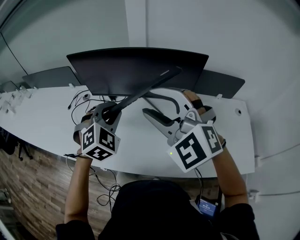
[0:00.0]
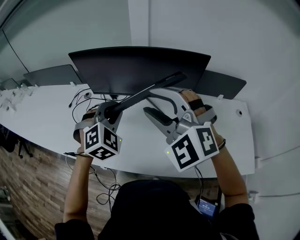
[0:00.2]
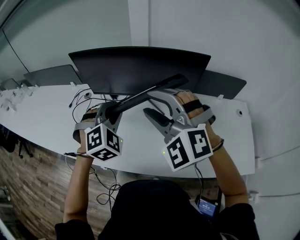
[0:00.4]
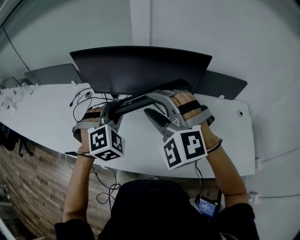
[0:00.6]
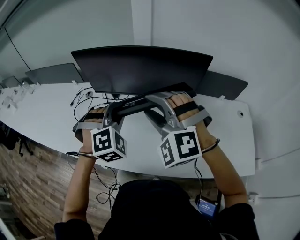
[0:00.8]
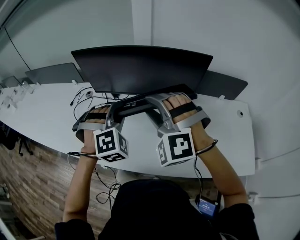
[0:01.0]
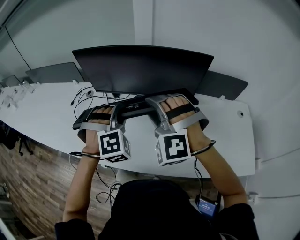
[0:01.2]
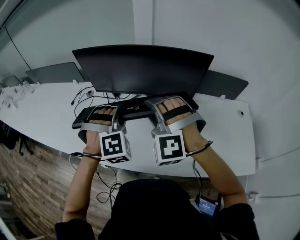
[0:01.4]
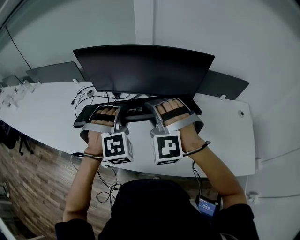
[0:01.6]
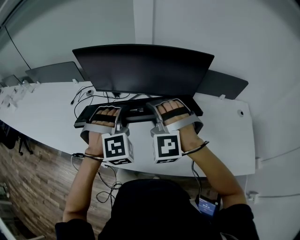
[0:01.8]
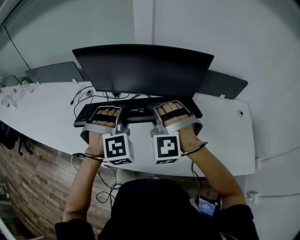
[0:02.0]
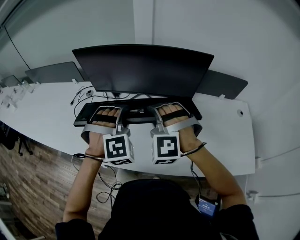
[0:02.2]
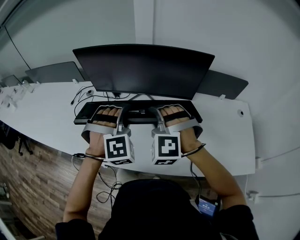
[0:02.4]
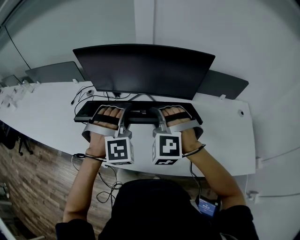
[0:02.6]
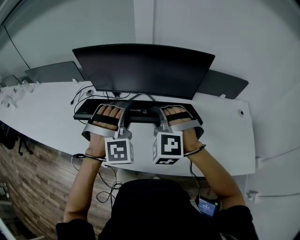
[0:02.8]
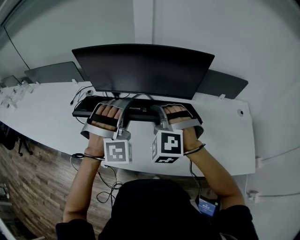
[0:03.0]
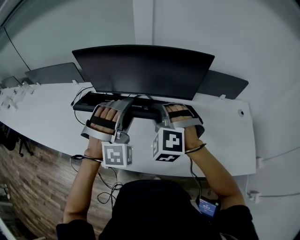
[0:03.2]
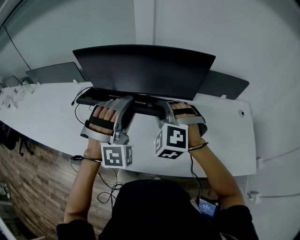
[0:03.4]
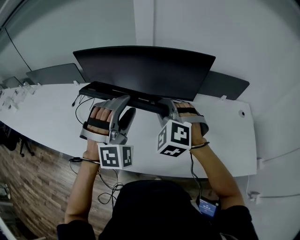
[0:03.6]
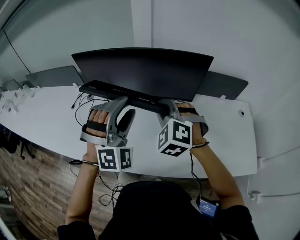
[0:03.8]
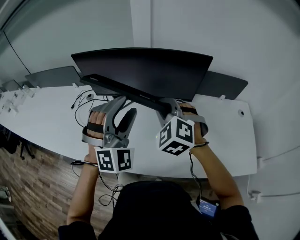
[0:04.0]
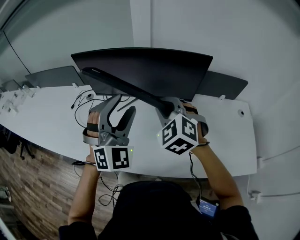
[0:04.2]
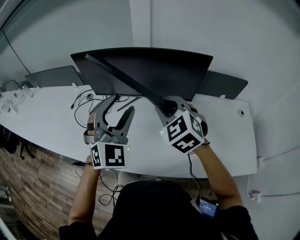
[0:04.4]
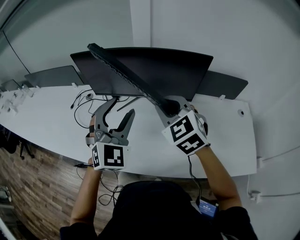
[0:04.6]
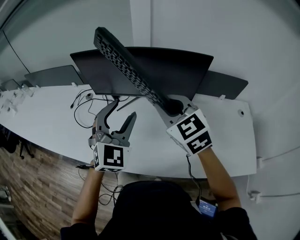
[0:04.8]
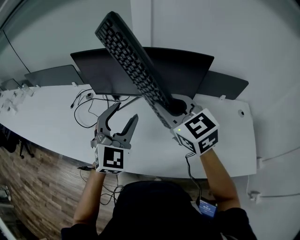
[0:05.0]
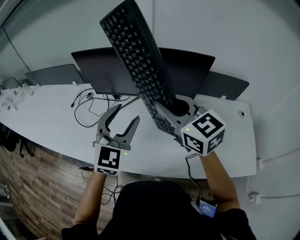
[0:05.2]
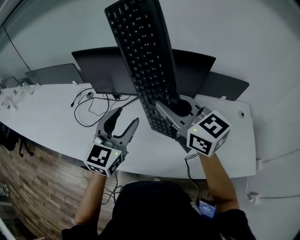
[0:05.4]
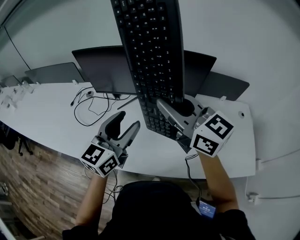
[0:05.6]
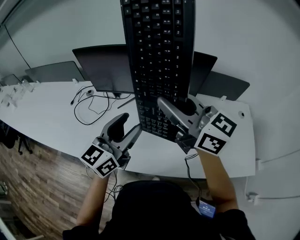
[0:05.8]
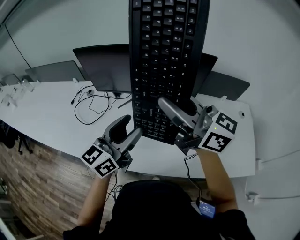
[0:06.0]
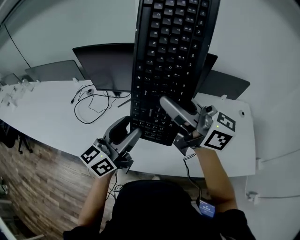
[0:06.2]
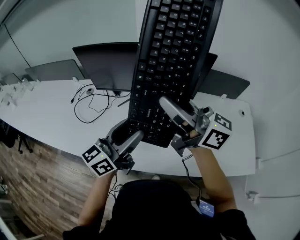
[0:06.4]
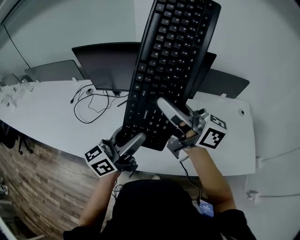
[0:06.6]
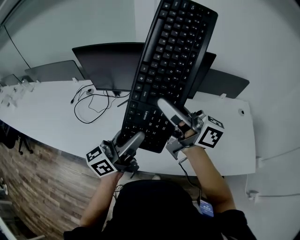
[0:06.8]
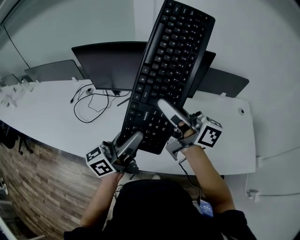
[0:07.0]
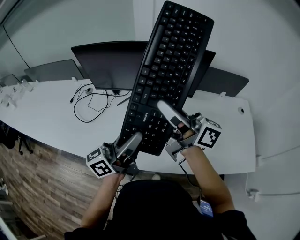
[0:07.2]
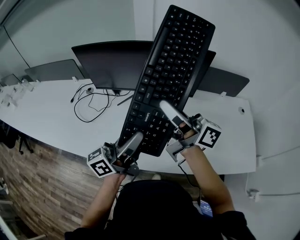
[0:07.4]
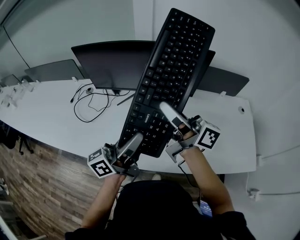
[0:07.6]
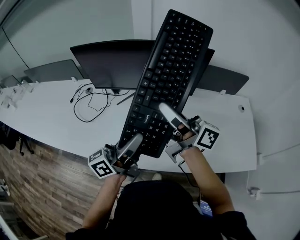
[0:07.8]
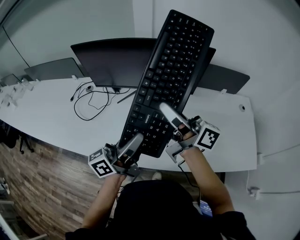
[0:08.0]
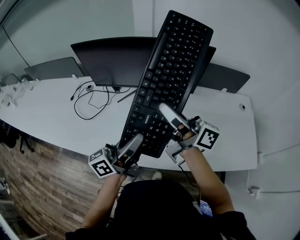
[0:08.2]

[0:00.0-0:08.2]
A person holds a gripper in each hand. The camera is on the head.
0:00.0 to 0:01.6: The right gripper goes some 10 cm downward, and swivels approximately 30 degrees. Meanwhile the left gripper rotates approximately 30 degrees.
0:01.6 to 0:03.2: The right gripper closes its fingers; the left gripper opens.
0:03.2 to 0:05.0: The left gripper twists about 50 degrees counterclockwise, seen from behind; the right gripper moves upward, about 10 cm, and rolls clockwise, seen from behind, by approximately 50 degrees.
0:05.0 to 0:06.6: The right gripper is displaced upward by some 5 cm, and angles its fingers upward, by roughly 40 degrees. Meanwhile the left gripper shifts some 5 cm backward, and rolls counterclockwise, seen from behind, by approximately 70 degrees.
0:06.6 to 0:08.2: The left gripper closes up.

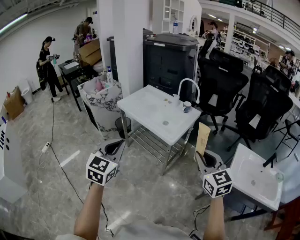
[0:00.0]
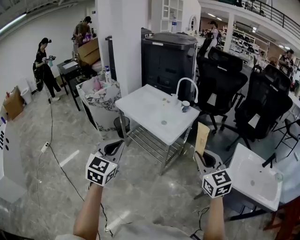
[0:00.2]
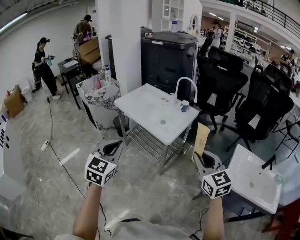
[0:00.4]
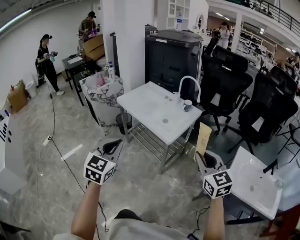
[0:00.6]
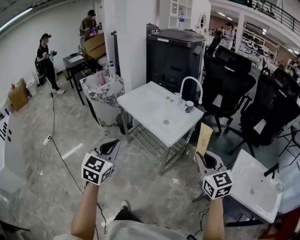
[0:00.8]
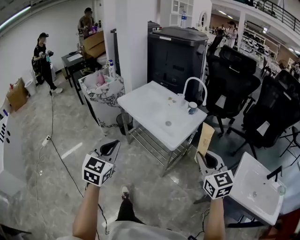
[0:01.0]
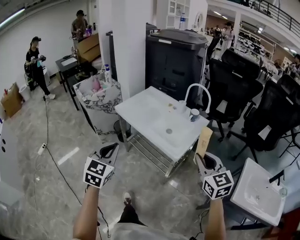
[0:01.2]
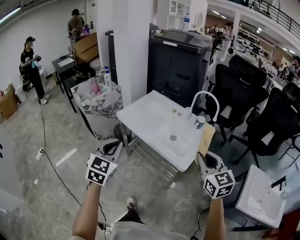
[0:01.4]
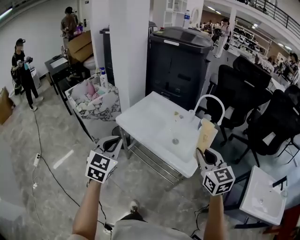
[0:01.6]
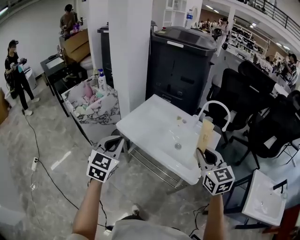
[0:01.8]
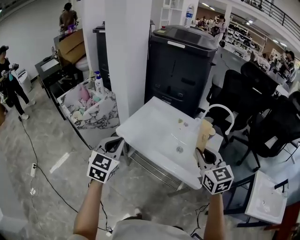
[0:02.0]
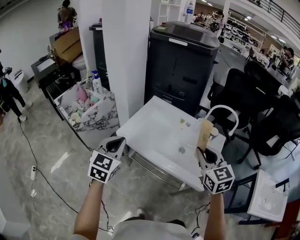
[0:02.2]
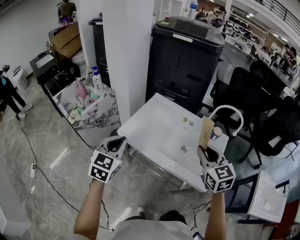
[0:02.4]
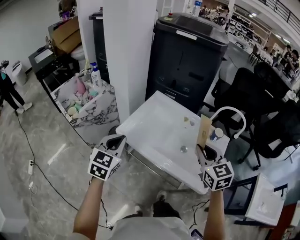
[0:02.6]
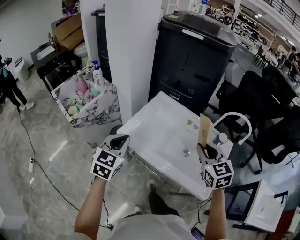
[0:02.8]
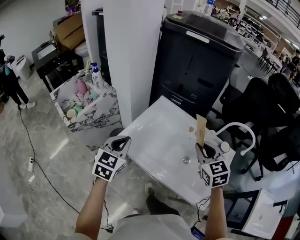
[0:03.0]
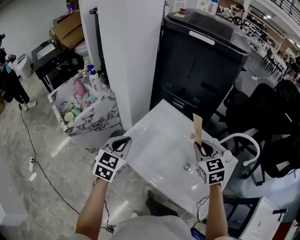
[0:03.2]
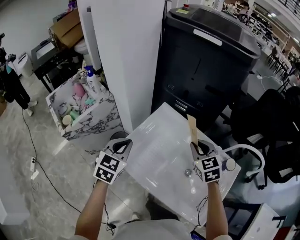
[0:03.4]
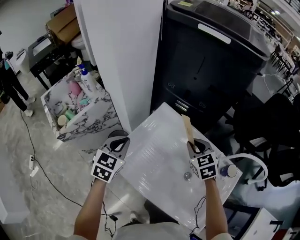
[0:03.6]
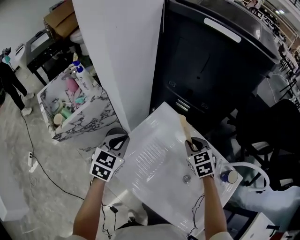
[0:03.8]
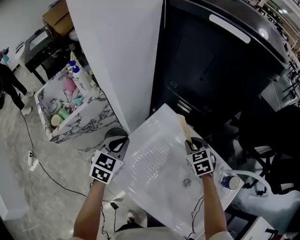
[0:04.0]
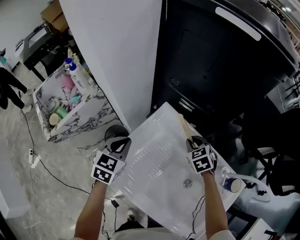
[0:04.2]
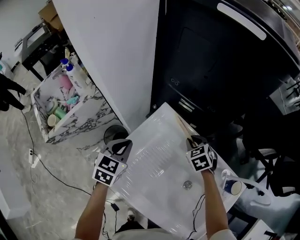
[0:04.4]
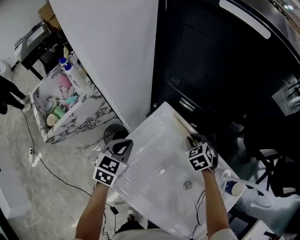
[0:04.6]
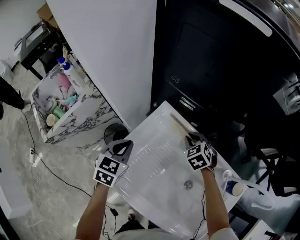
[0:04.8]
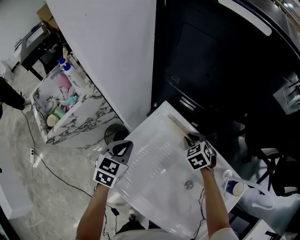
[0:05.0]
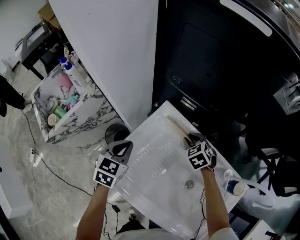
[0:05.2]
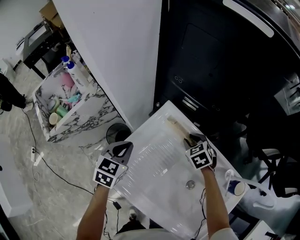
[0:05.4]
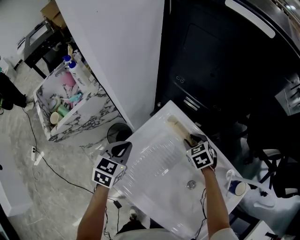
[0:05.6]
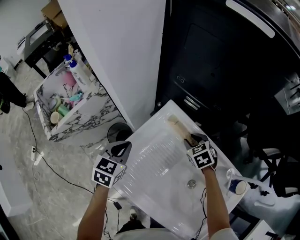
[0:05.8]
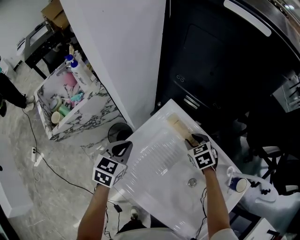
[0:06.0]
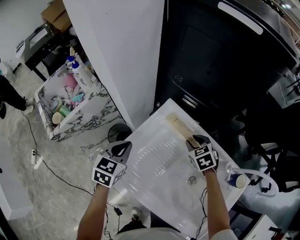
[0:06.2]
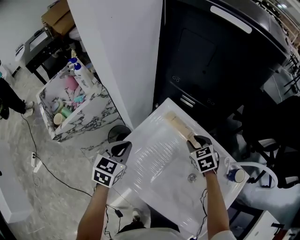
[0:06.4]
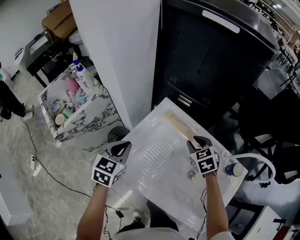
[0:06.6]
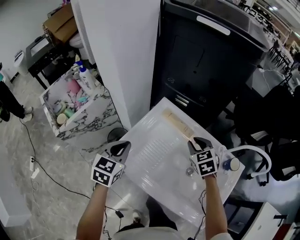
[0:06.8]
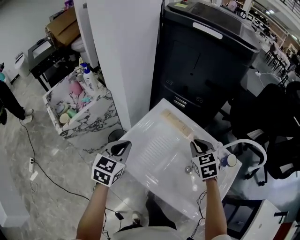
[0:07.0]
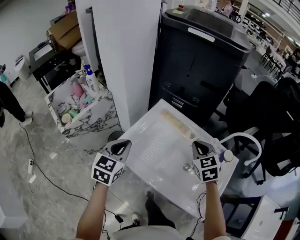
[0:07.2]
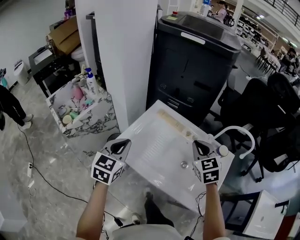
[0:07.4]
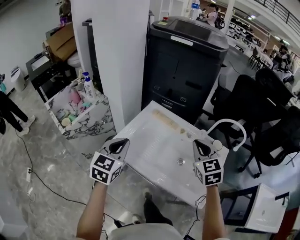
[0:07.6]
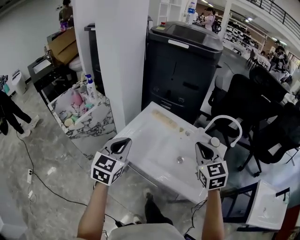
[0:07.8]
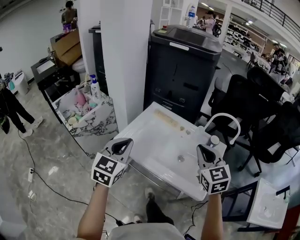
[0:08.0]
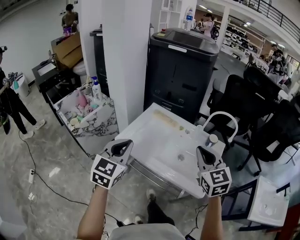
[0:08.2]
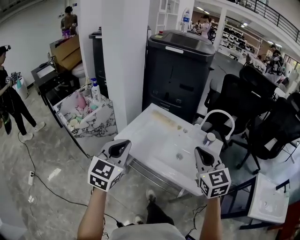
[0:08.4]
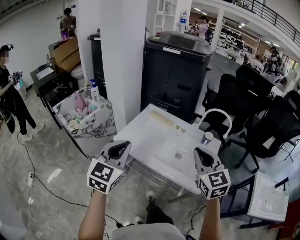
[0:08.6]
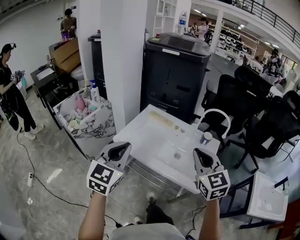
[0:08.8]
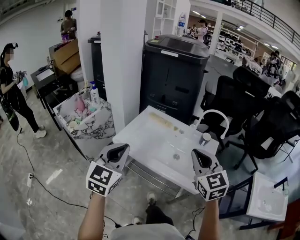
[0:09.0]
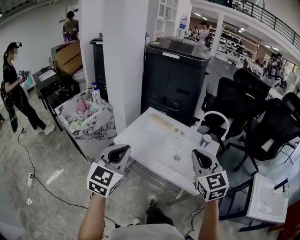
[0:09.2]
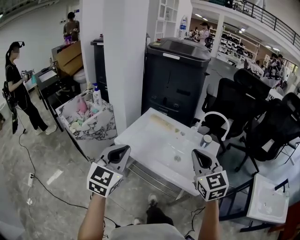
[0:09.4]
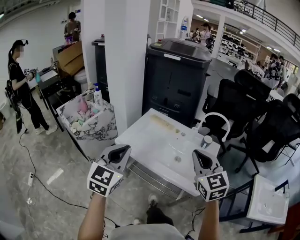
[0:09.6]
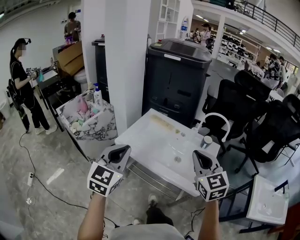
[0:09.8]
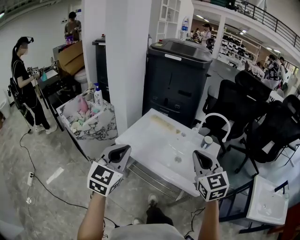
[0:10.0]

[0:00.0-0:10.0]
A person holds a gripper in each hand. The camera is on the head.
0:00.0 to 0:01.4: The grippers both shift forward by roughly 25 cm.
0:01.4 to 0:02.8: The right gripper is displaced forward and to the left by some 35 cm. Meanwhile the left gripper moves forward, roughly 30 cm.
0:02.8 to 0:04.2: The grippers both shift forward and downward by roughly 35 cm. The right gripper rotates roughly 30 degrees.
0:04.2 to 0:05.8: The grippers make only small movements.
0:05.8 to 0:07.2: The left gripper shifts roughly 20 cm backward and upward. The right gripper shifts roughly 30 cm upward and backward, swivels some 30 degrees, and closes its fingers.
0:07.2 to 0:08.6: Both grippers travel together backward and upward, roughly 30 cm. The right gripper swivels some 20 degrees.
0:08.6 to 0:10.0: There are only small adjustments of the grippers.

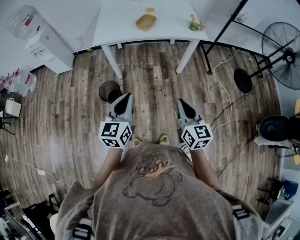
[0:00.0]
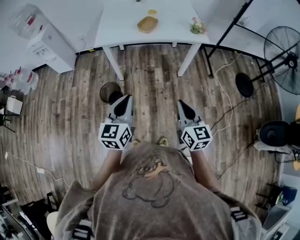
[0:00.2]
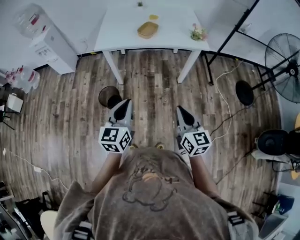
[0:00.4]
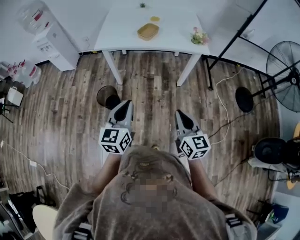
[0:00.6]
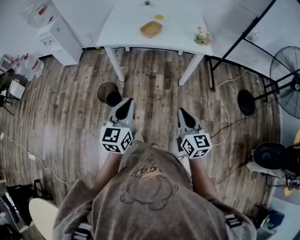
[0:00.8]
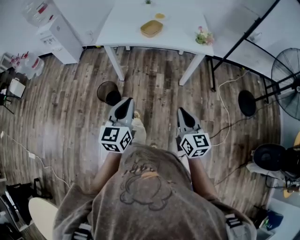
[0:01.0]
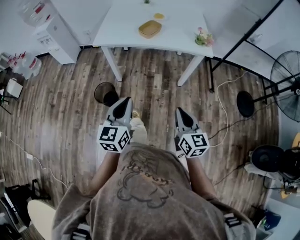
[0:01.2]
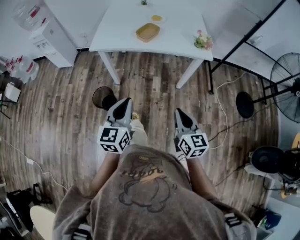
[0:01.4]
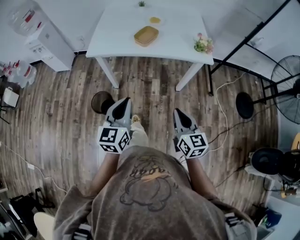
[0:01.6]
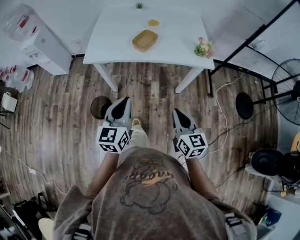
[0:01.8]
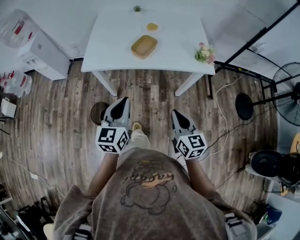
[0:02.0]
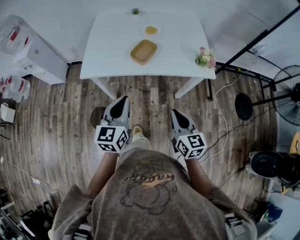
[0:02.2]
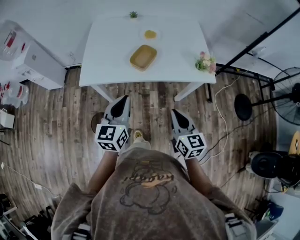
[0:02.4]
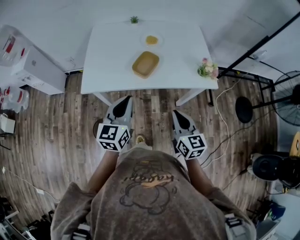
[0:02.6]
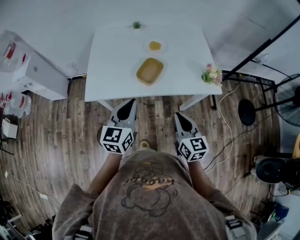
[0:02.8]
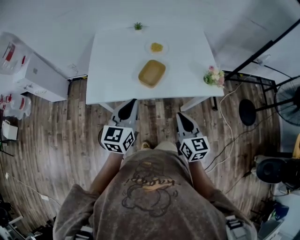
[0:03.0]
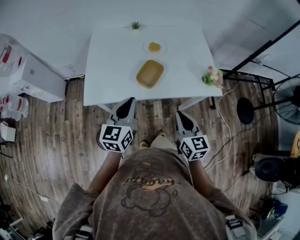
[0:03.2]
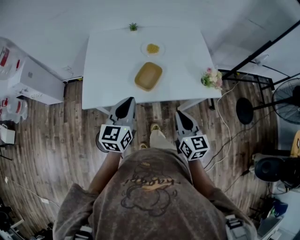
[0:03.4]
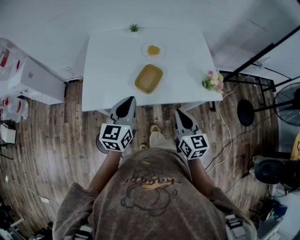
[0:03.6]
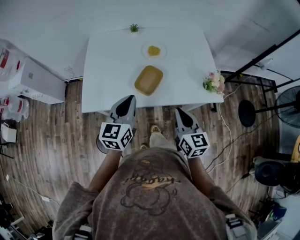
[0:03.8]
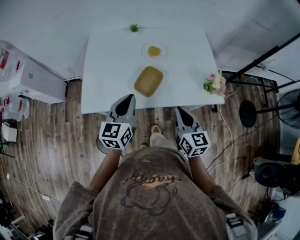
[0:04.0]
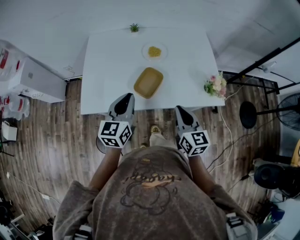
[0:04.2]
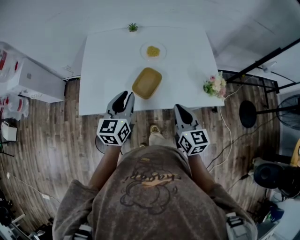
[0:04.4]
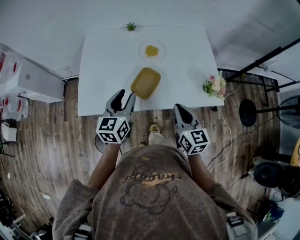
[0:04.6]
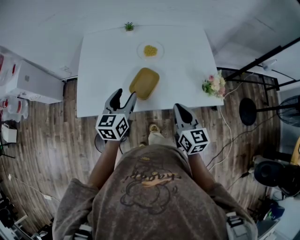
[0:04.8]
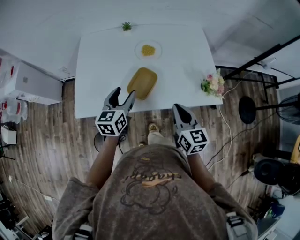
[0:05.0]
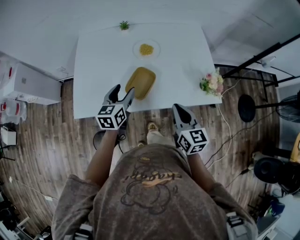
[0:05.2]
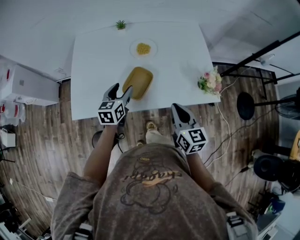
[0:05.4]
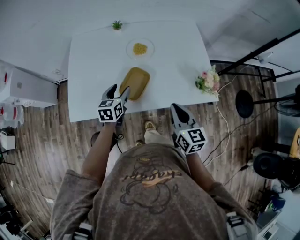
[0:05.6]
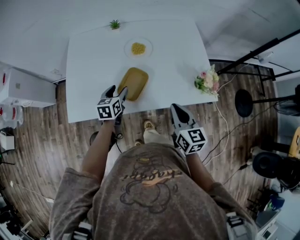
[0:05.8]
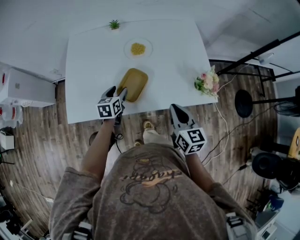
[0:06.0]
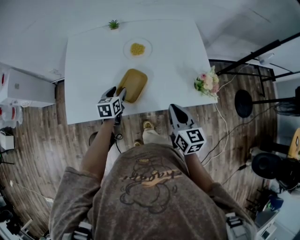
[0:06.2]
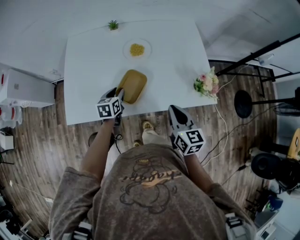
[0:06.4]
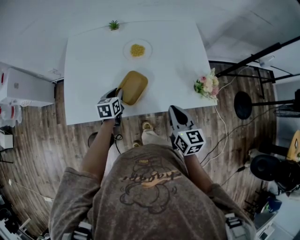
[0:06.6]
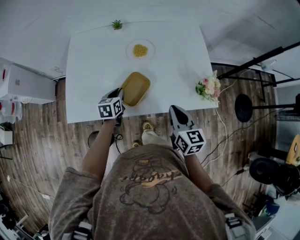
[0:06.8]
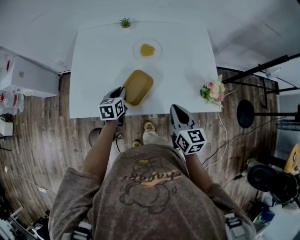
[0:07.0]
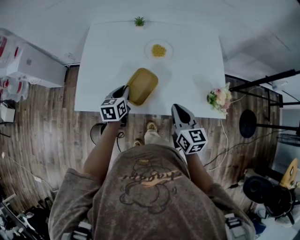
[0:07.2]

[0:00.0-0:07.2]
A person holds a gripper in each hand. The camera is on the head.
0:00.0 to 0:01.4: The grippers both shift forward and to the right by about 15 cm.
0:01.4 to 0:02.8: The two grippers go some 35 cm forward.
0:02.8 to 0:04.4: The two grippers go about 15 cm forward.
0:04.4 to 0:05.8: The left gripper heads downward and forward, covering some 20 cm, turns by approximately 20 degrees, and opens; the right gripper heads to the right, covering some 5 cm.
0:05.8 to 0:07.2: The right gripper moves approximately 5 cm. Meanwhile the left gripper closes up.
